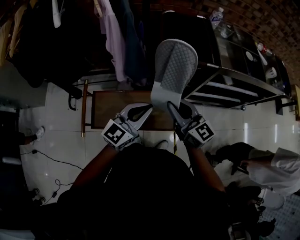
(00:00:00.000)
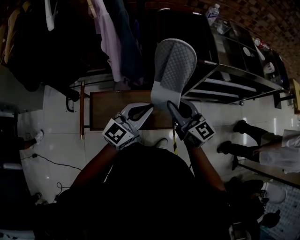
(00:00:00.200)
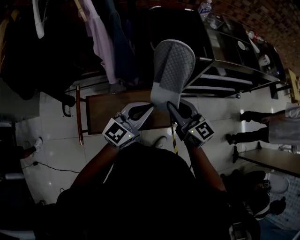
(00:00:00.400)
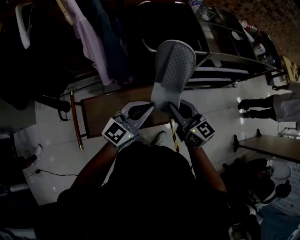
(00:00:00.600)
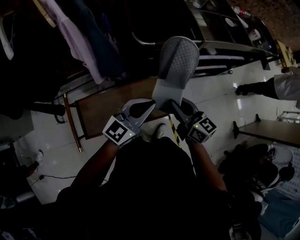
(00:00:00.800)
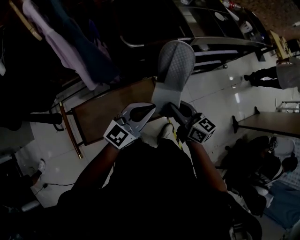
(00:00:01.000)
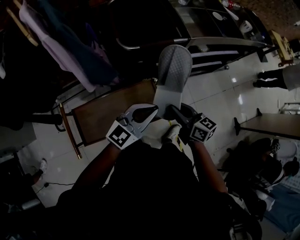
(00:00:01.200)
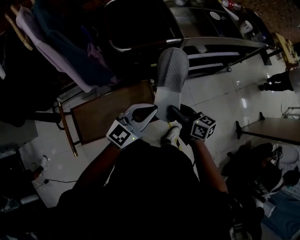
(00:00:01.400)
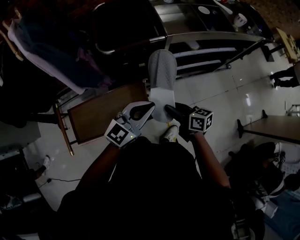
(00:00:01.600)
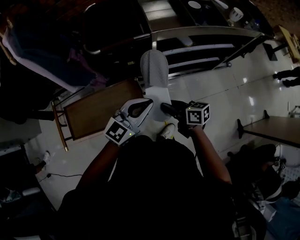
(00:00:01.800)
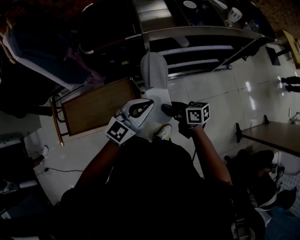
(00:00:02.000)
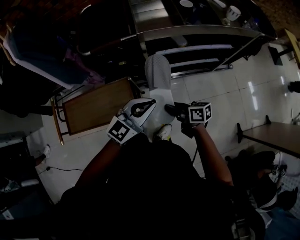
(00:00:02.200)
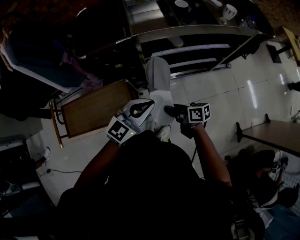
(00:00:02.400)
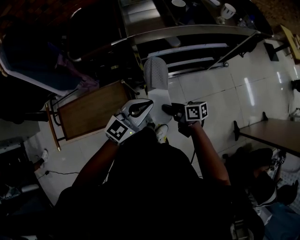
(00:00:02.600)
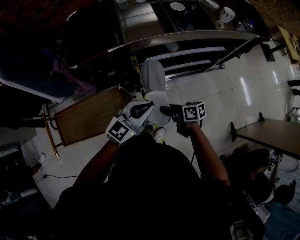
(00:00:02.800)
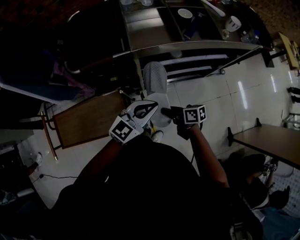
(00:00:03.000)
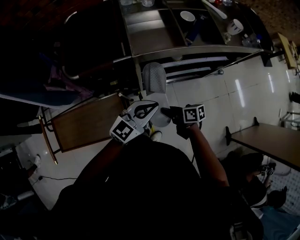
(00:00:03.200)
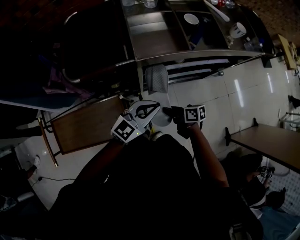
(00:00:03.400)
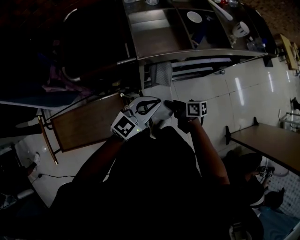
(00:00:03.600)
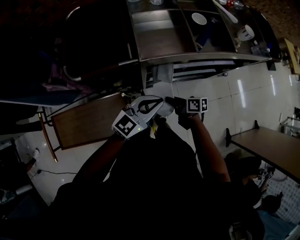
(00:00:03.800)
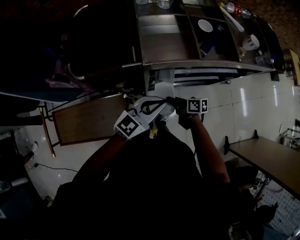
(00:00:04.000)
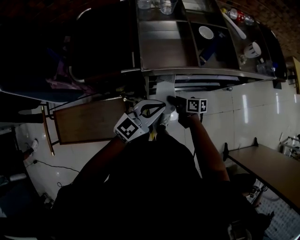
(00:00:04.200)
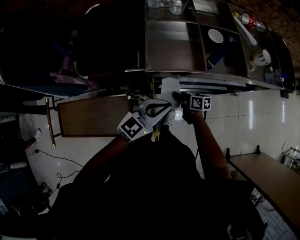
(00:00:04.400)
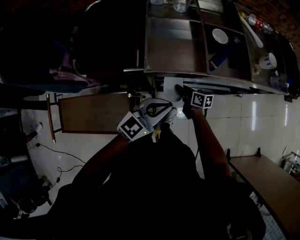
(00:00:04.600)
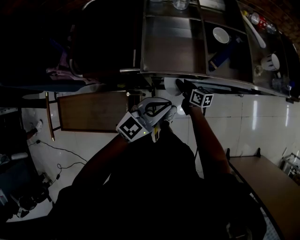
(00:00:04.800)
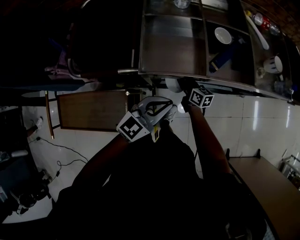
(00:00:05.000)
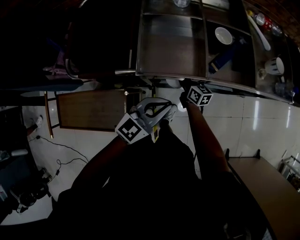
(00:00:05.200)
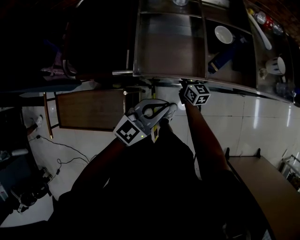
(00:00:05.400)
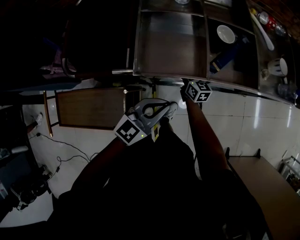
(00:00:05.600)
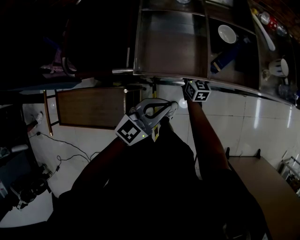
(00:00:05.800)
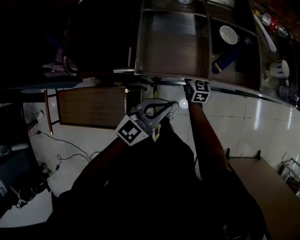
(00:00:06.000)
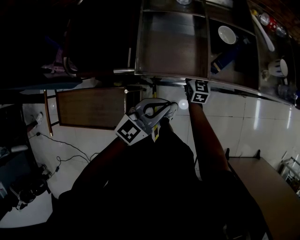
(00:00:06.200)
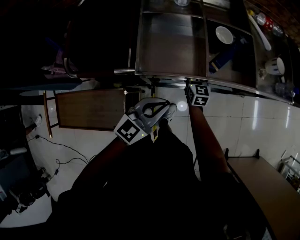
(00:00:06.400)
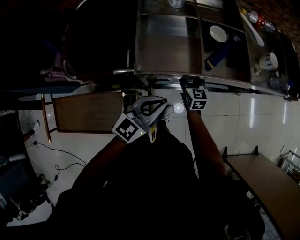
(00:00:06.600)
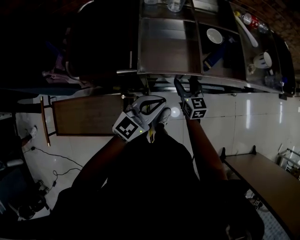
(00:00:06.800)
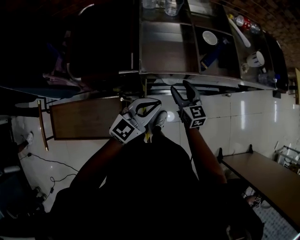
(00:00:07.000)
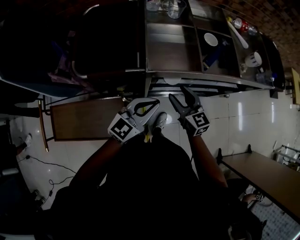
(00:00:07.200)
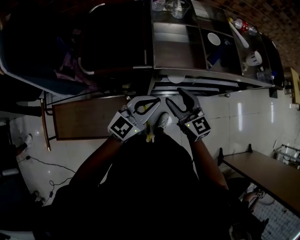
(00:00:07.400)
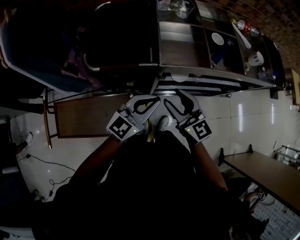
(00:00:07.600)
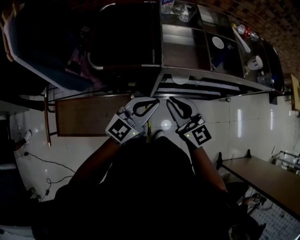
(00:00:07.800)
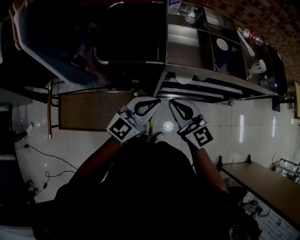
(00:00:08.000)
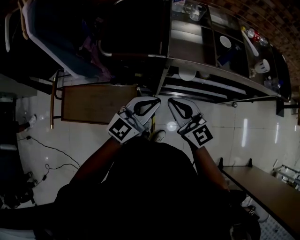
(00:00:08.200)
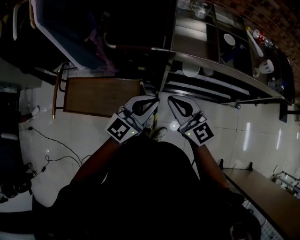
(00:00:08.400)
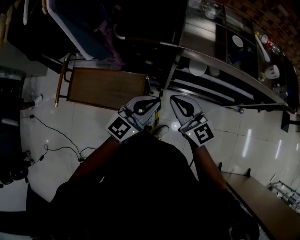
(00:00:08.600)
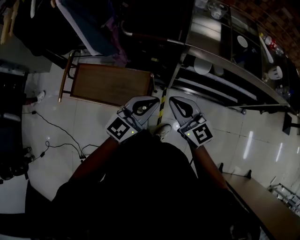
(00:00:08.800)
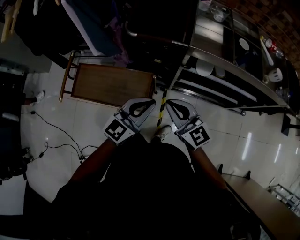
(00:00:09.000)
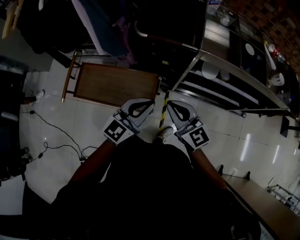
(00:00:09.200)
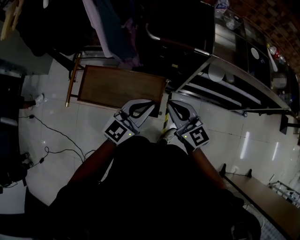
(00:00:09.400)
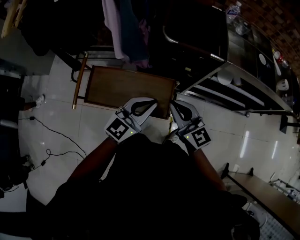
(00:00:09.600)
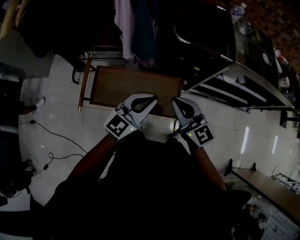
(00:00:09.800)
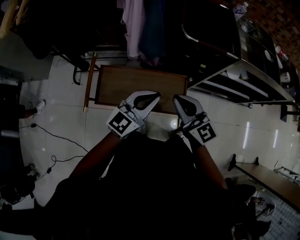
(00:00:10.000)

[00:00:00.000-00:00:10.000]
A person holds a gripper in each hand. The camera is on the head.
00:00:00.000 to 00:00:01.400: The left gripper goes some 15 cm to the right, and changes its angle by roughly 20 degrees. The right gripper goes about 20 cm to the right and downward, and swivels about 30 degrees.
00:00:01.400 to 00:00:02.800: The right gripper is displaced to the right and downward by approximately 25 cm, and swivels some 30 degrees. The left gripper is displaced to the right by approximately 25 cm.
00:00:02.800 to 00:00:04.200: The grippers both shift forward by about 15 cm.
00:00:04.200 to 00:00:05.800: The left gripper changes place by approximately 5 cm. The right gripper travels forward by approximately 20 cm, and turns by approximately 40 degrees.
00:00:05.800 to 00:00:07.200: The right gripper travels upward and backward by about 25 cm, and opens. The left gripper moves to the left, roughly 5 cm.
00:00:07.200 to 00:00:08.600: The left gripper is displaced backward and to the left by some 15 cm, while the right gripper travels backward, upward and to the left by some 20 cm, swivels approximately 30 degrees, and closes.
00:00:08.600 to 00:00:10.000: The grippers both shift to the left by about 35 cm.

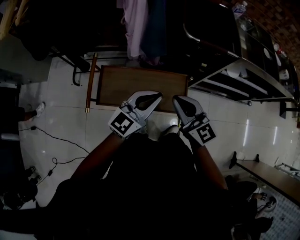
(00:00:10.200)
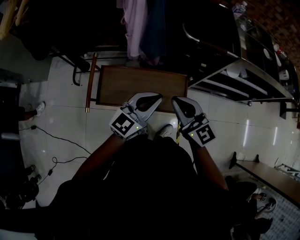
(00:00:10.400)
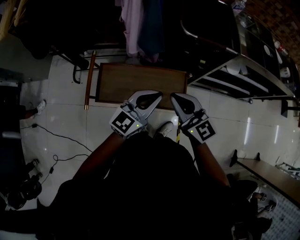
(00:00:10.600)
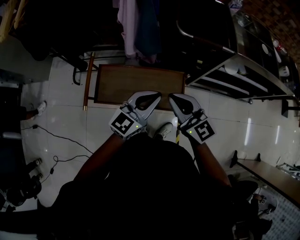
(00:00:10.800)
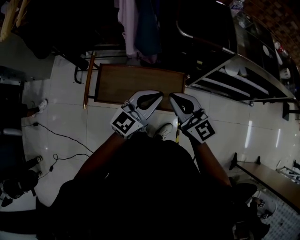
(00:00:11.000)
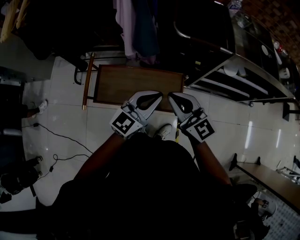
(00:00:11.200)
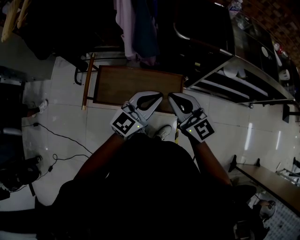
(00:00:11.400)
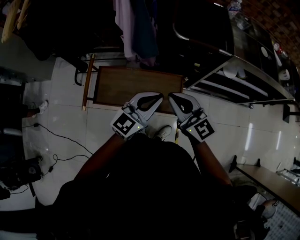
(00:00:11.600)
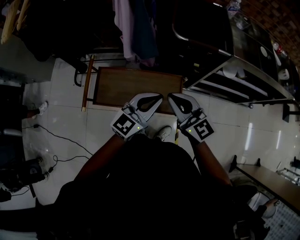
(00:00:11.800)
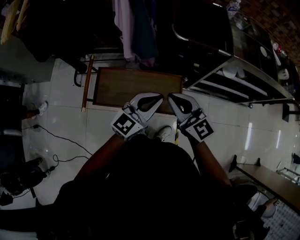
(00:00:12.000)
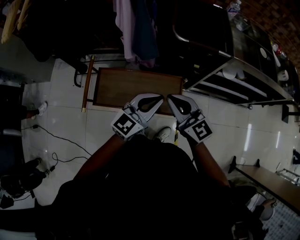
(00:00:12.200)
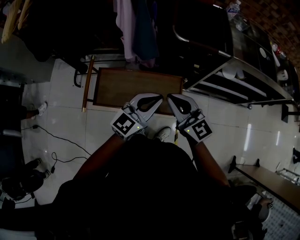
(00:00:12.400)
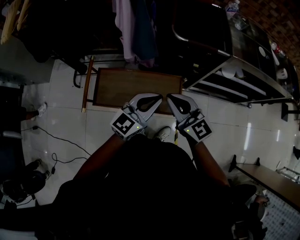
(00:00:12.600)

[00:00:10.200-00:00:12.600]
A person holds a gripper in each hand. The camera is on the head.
00:00:10.200 to 00:00:11.400: The left gripper travels to the right by some 5 cm.
00:00:11.400 to 00:00:12.600: The two grippers keep their place.

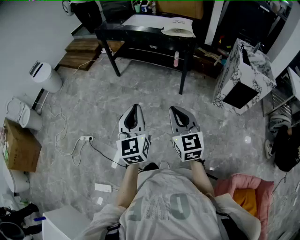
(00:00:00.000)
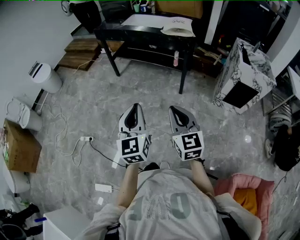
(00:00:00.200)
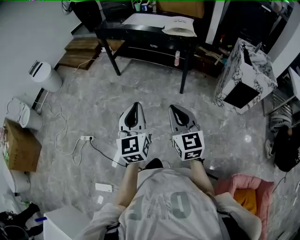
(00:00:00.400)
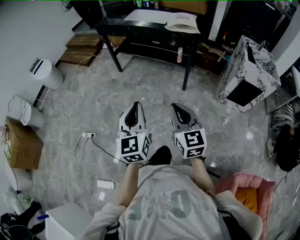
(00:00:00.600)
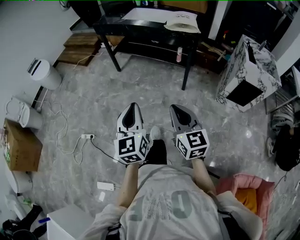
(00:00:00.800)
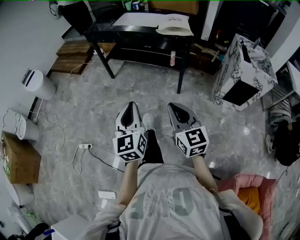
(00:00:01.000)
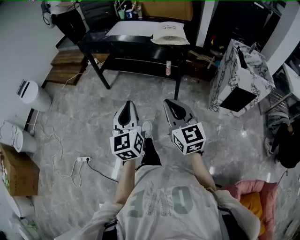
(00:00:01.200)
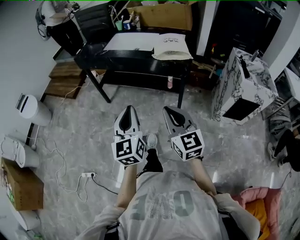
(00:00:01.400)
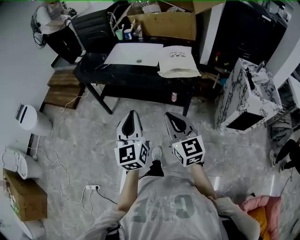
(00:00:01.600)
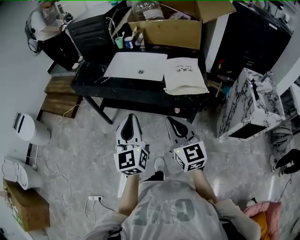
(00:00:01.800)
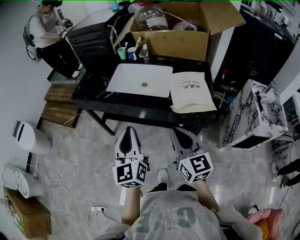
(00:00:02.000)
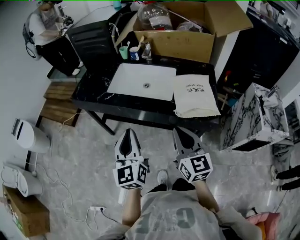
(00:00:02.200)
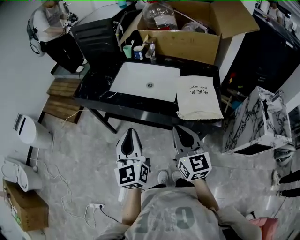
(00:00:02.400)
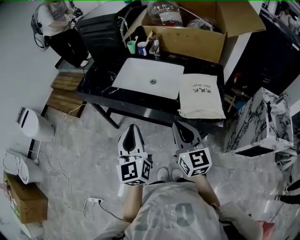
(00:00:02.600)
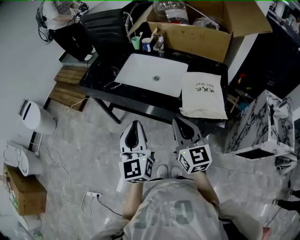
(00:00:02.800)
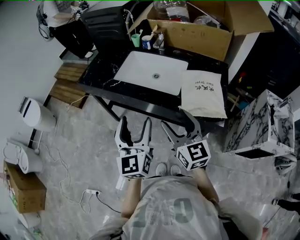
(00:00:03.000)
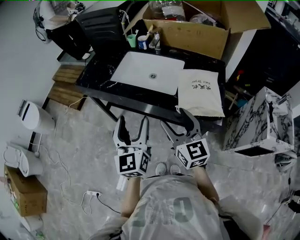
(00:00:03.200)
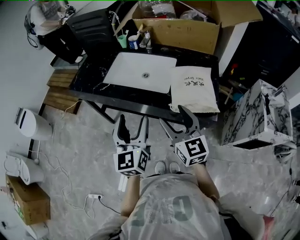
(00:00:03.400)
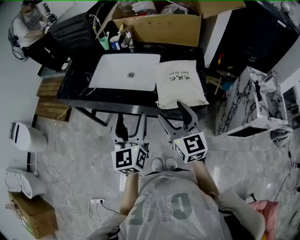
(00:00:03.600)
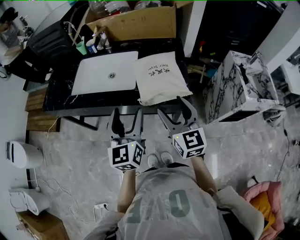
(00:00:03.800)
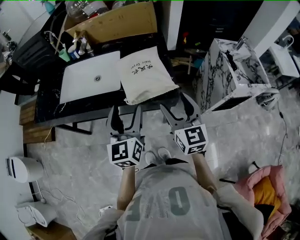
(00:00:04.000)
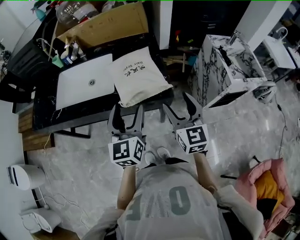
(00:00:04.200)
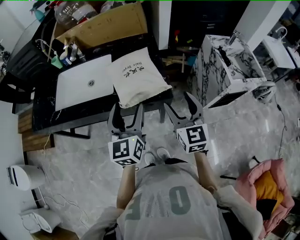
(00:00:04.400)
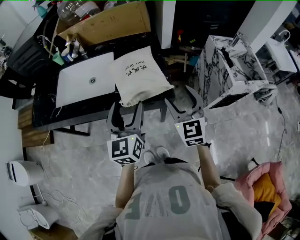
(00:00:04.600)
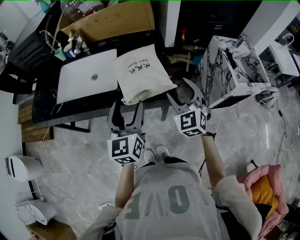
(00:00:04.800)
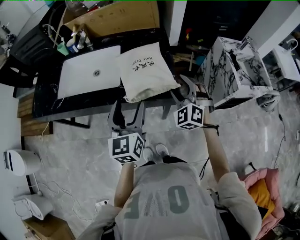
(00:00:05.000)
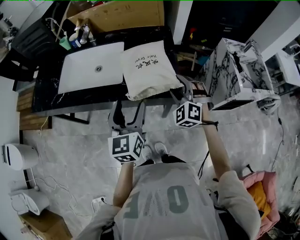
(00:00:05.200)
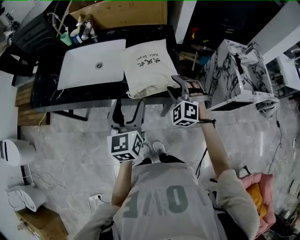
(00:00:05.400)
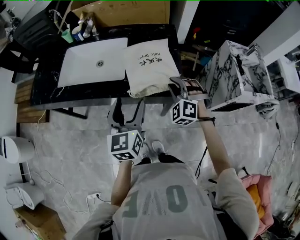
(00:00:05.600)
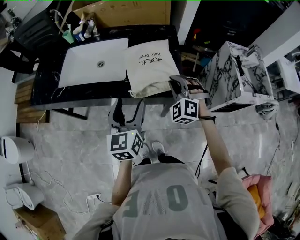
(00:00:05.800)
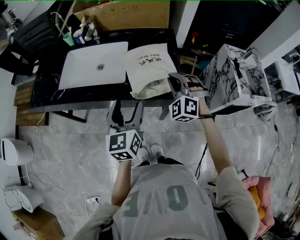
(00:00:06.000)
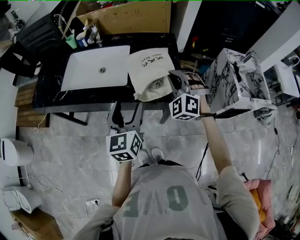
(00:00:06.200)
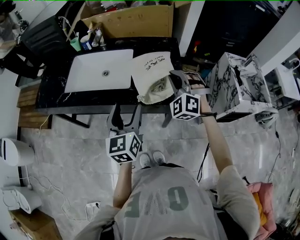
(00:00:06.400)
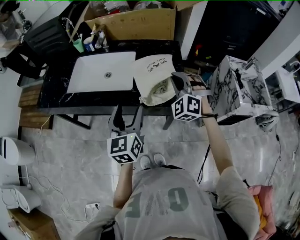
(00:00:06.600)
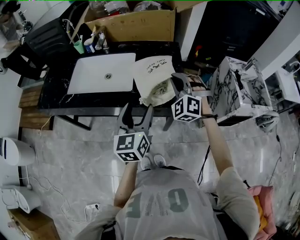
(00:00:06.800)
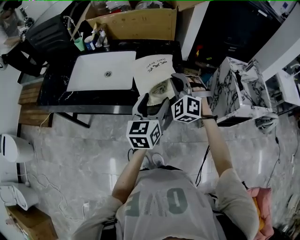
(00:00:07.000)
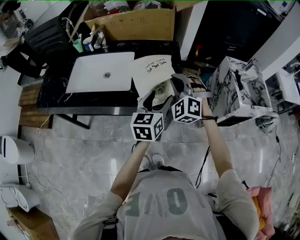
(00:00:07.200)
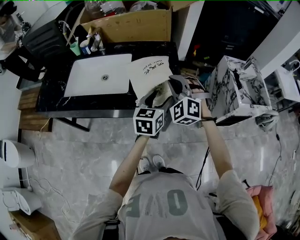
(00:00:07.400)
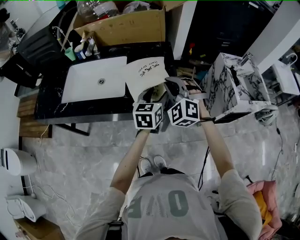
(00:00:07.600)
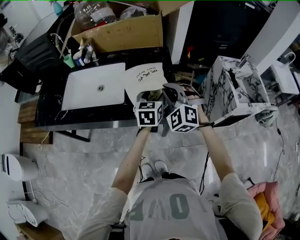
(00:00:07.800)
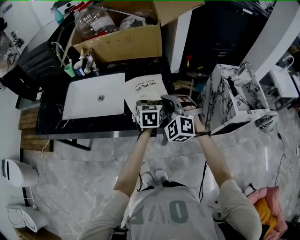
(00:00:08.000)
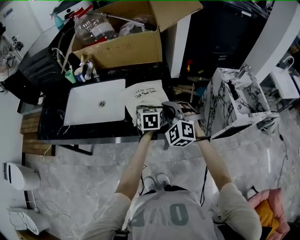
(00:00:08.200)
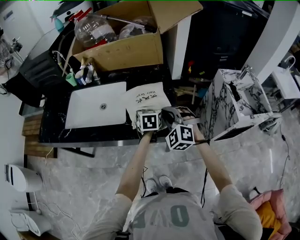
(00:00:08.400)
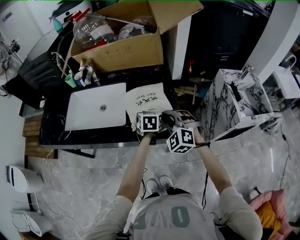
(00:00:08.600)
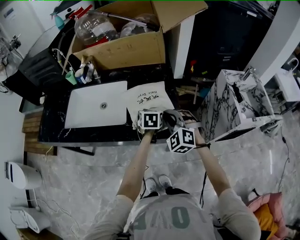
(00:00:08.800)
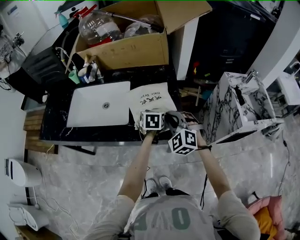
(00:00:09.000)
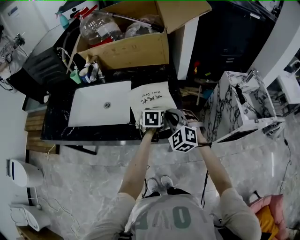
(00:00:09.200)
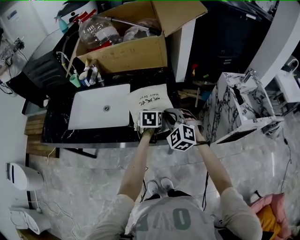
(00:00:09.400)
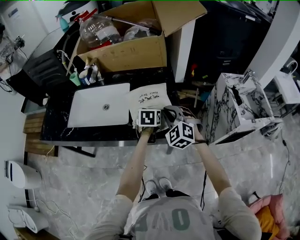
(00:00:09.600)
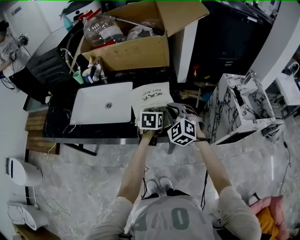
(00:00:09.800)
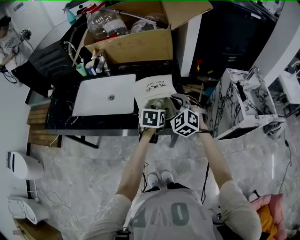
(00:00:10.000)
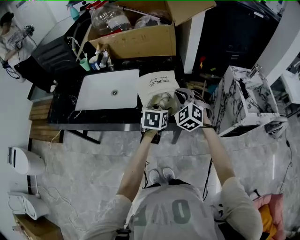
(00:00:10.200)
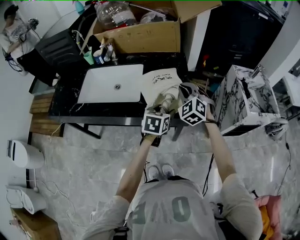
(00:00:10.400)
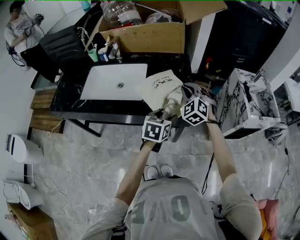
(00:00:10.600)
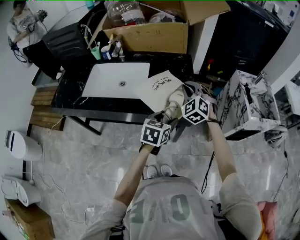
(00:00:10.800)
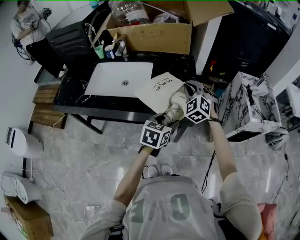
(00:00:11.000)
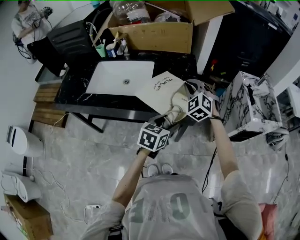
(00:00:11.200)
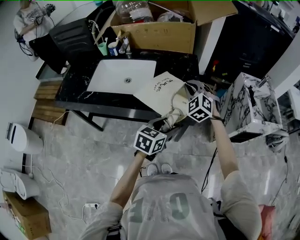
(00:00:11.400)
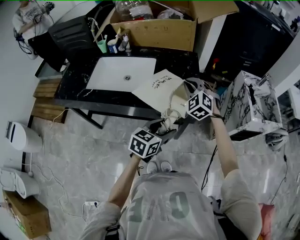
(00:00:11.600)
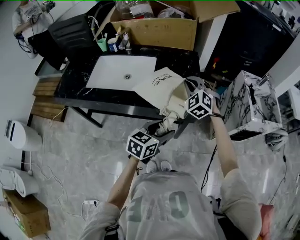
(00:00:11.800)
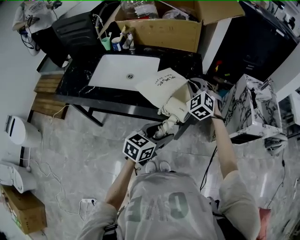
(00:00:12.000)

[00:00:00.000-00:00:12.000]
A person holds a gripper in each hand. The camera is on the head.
00:00:00.000 to 00:00:01.600: Both grippers move forward, approximately 40 cm.
00:00:01.600 to 00:00:03.000: The grippers both shift forward by approximately 25 cm. The right gripper opens; the left gripper opens its fingers.
00:00:03.000 to 00:00:04.400: The left gripper moves about 25 cm, and turns by some 30 degrees. Meanwhile the right gripper ends up roughly 25 cm from where it was, and turns by roughly 40 degrees.
00:00:04.400 to 00:00:06.000: The right gripper goes roughly 15 cm forward and to the left, rotates around the line of its fingers by some 60 degrees, counterclockwise from behind, and closes its fingers. Meanwhile the left gripper travels to the left by about 5 cm.
00:00:06.000 to 00:00:07.600: The left gripper moves to the right and forward, approximately 15 cm, and rotates approximately 20 degrees.
00:00:07.600 to 00:00:09.000: The left gripper shifts some 15 cm downward and forward, and swivels about 20 degrees. The right gripper moves downward, about 5 cm.
00:00:09.000 to 00:00:10.400: The left gripper travels backward and upward by about 15 cm.
00:00:10.400 to 00:00:12.000: The left gripper moves backward, approximately 15 cm.
